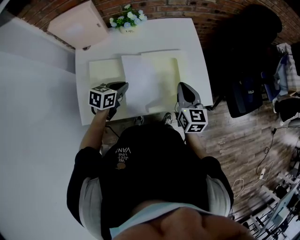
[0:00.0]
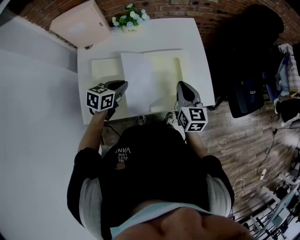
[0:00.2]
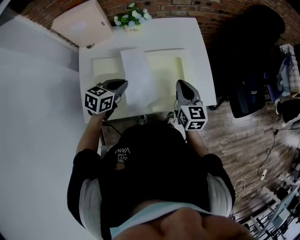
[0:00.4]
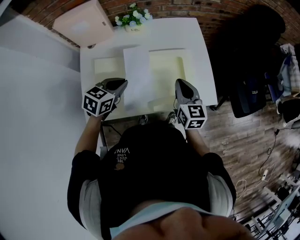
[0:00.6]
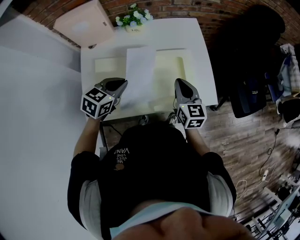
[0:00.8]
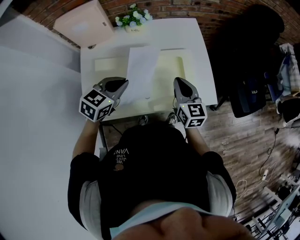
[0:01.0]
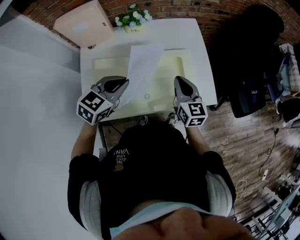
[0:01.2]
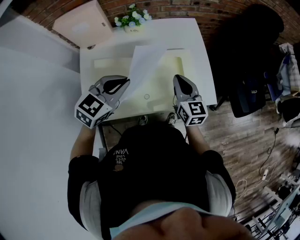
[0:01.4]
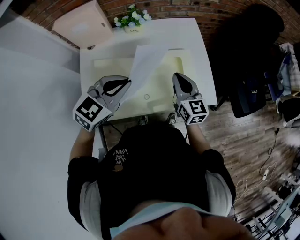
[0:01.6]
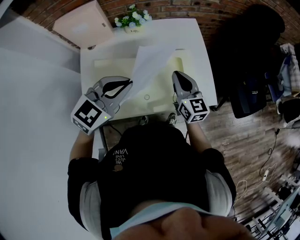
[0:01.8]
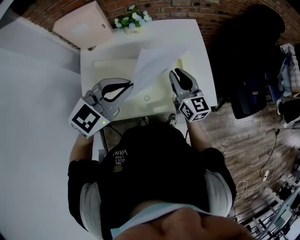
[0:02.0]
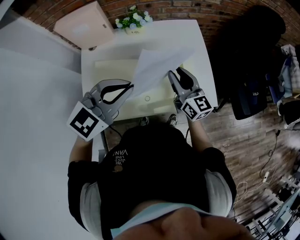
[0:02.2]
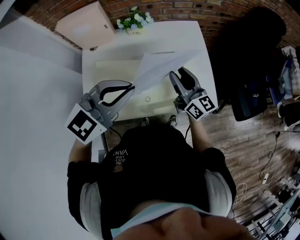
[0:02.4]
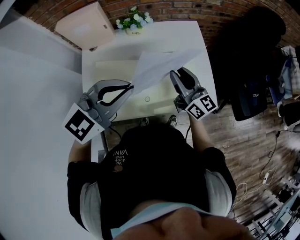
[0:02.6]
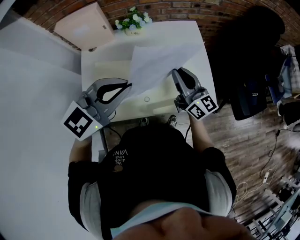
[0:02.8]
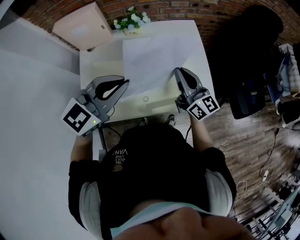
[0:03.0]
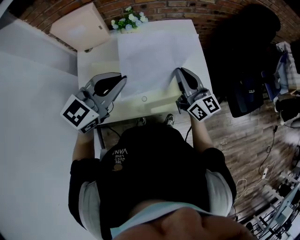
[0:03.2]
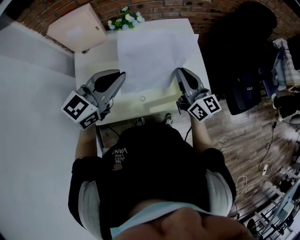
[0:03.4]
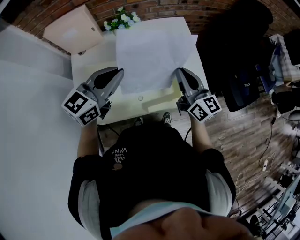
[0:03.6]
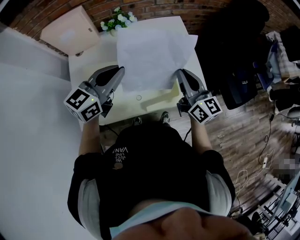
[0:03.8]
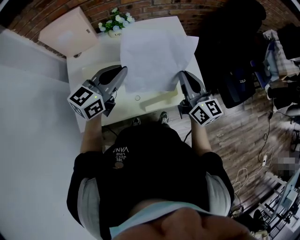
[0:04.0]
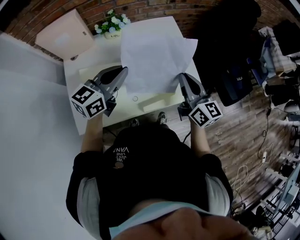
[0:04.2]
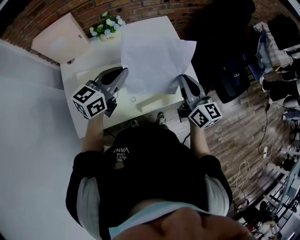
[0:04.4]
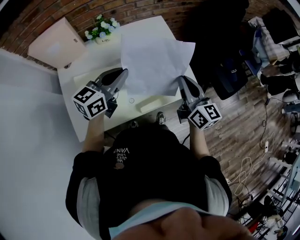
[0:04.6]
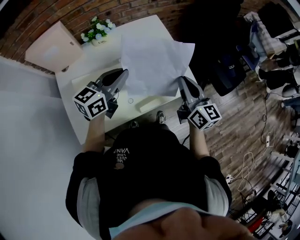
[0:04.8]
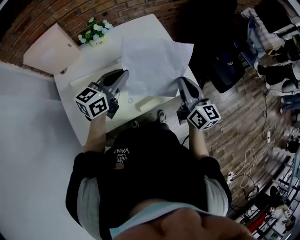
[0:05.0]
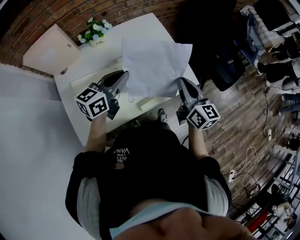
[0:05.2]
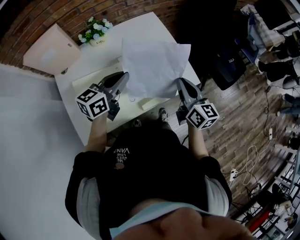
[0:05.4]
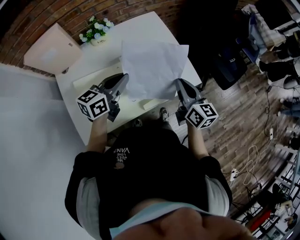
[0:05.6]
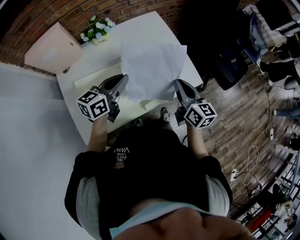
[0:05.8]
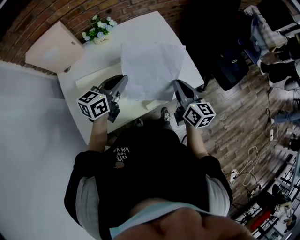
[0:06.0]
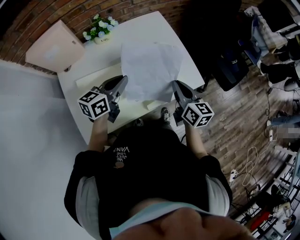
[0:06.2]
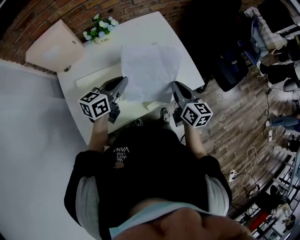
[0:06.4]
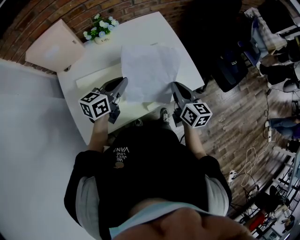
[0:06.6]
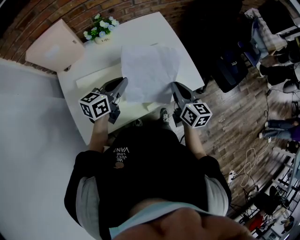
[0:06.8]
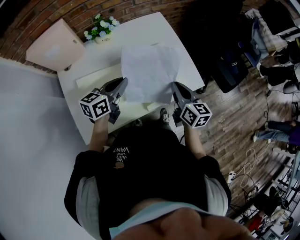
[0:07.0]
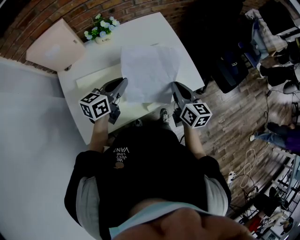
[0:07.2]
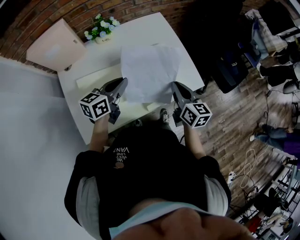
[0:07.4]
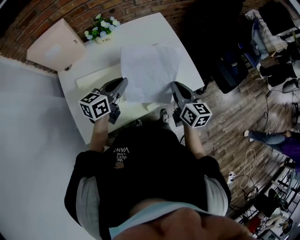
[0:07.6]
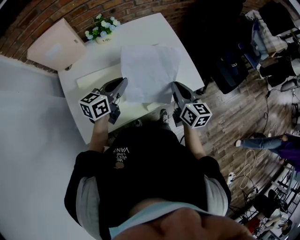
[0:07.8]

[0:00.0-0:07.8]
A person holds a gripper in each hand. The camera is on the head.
0:00.0 to 0:01.6: The left gripper heads upward, covering about 20 cm, and swivels about 40 degrees. Meanwhile the right gripper moves about 5 cm.
0:01.6 to 0:03.2: Both grippers move upward, about 5 cm. The right gripper turns by about 20 degrees, and opens and closes again.
0:03.2 to 0:04.6: The left gripper shifts some 10 cm downward and forward, and turns by roughly 20 degrees. Meanwhile the right gripper is displaced to the right by roughly 10 cm, and rotates approximately 20 degrees.
0:04.6 to 0:06.2: Both grippers travel together downward, roughly 5 cm.
0:06.2 to 0:07.8: The grippers move only a little.

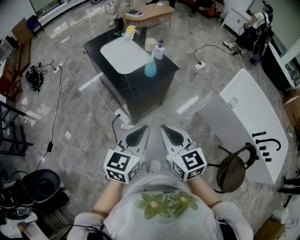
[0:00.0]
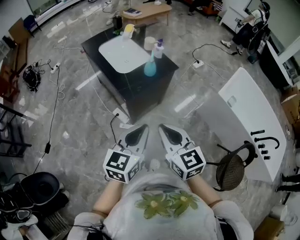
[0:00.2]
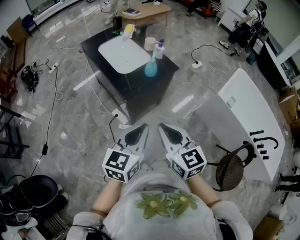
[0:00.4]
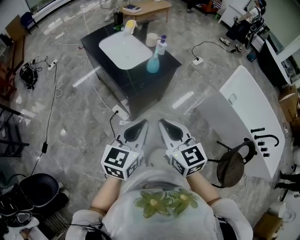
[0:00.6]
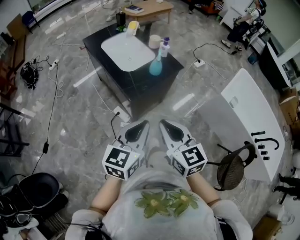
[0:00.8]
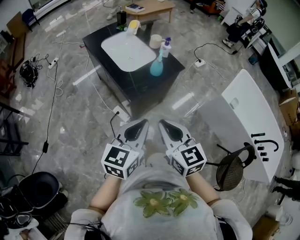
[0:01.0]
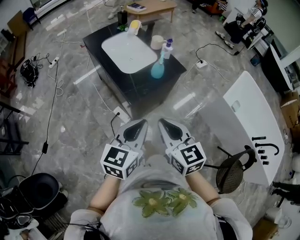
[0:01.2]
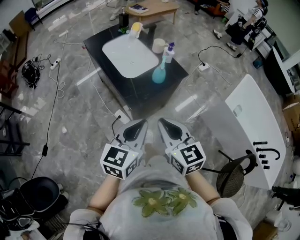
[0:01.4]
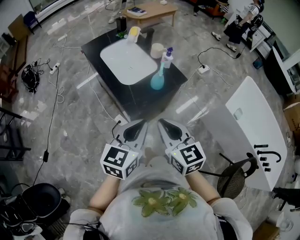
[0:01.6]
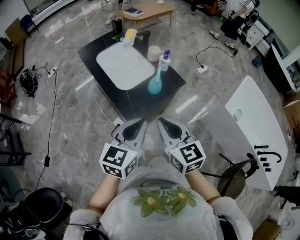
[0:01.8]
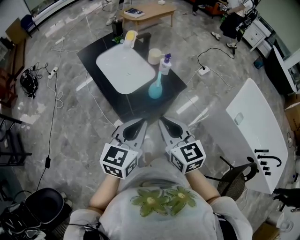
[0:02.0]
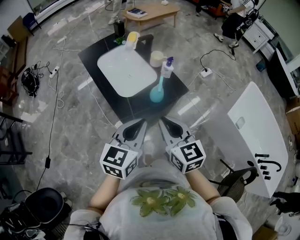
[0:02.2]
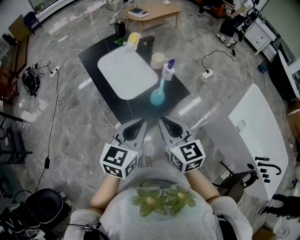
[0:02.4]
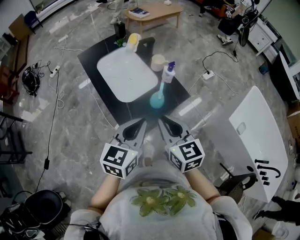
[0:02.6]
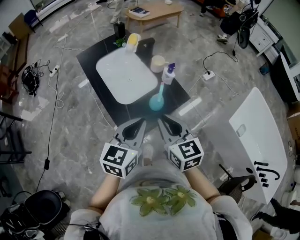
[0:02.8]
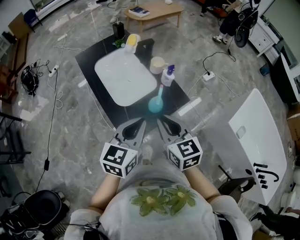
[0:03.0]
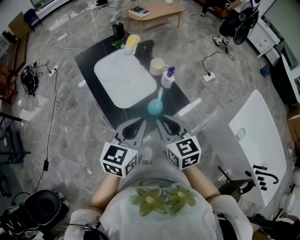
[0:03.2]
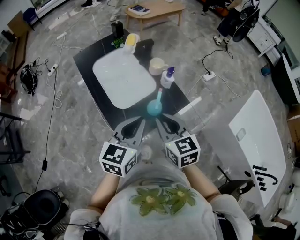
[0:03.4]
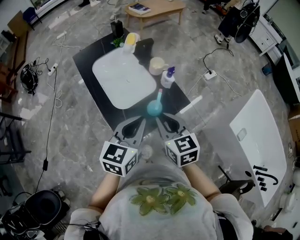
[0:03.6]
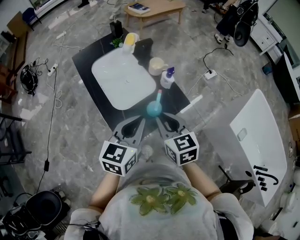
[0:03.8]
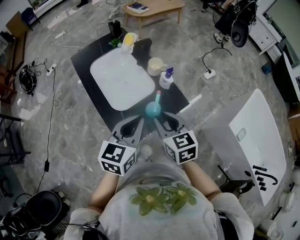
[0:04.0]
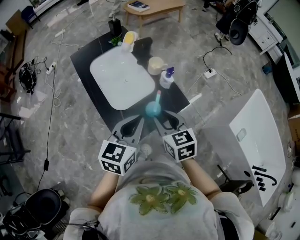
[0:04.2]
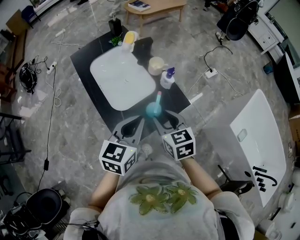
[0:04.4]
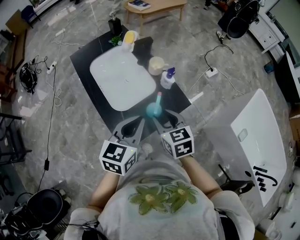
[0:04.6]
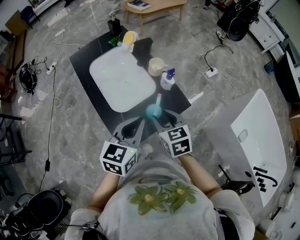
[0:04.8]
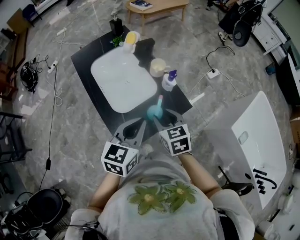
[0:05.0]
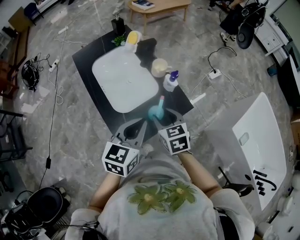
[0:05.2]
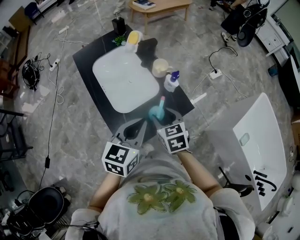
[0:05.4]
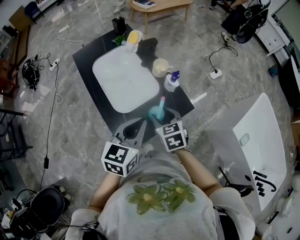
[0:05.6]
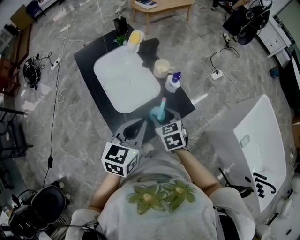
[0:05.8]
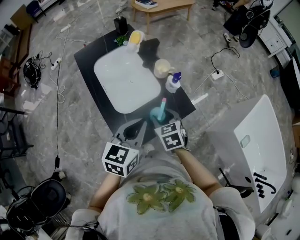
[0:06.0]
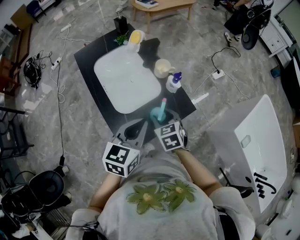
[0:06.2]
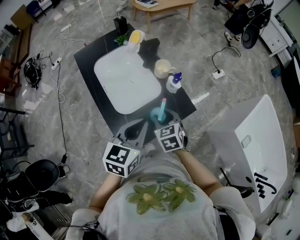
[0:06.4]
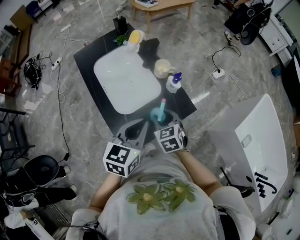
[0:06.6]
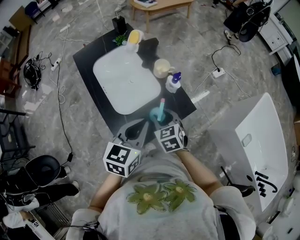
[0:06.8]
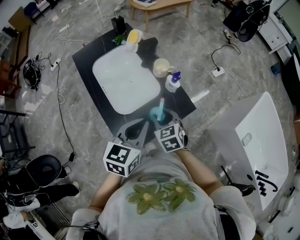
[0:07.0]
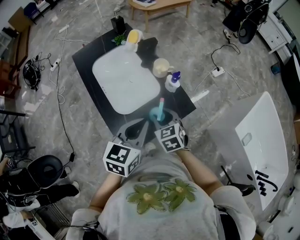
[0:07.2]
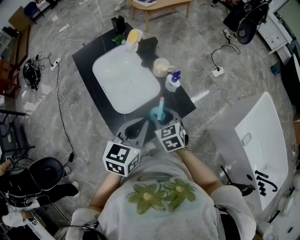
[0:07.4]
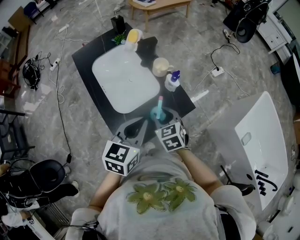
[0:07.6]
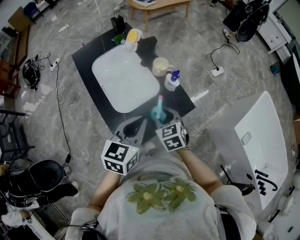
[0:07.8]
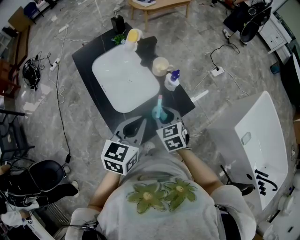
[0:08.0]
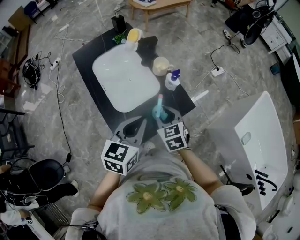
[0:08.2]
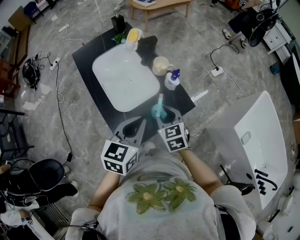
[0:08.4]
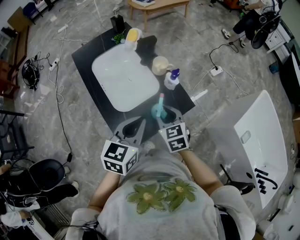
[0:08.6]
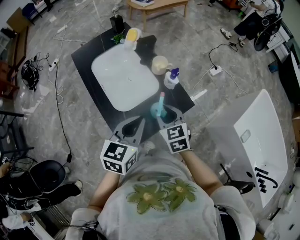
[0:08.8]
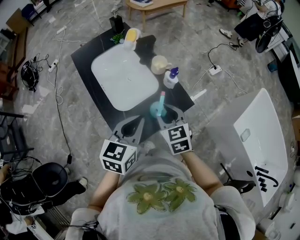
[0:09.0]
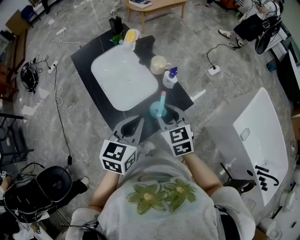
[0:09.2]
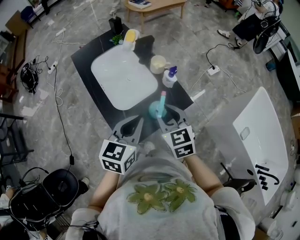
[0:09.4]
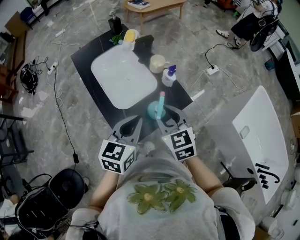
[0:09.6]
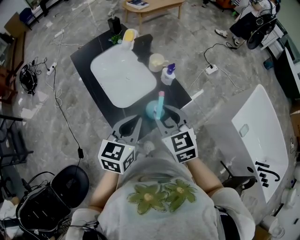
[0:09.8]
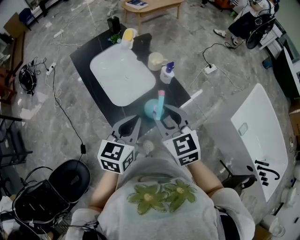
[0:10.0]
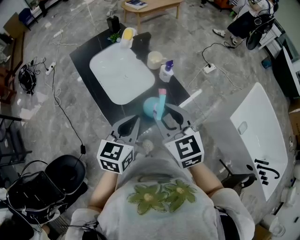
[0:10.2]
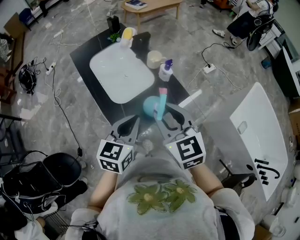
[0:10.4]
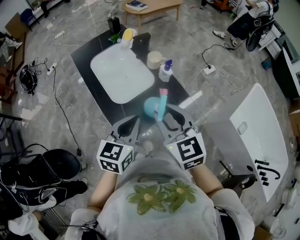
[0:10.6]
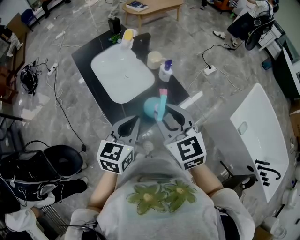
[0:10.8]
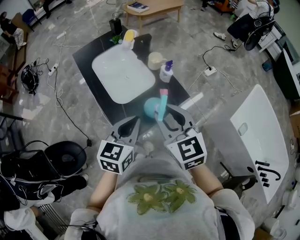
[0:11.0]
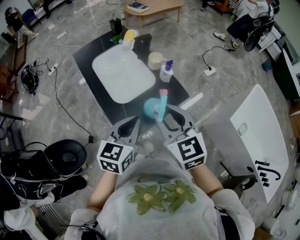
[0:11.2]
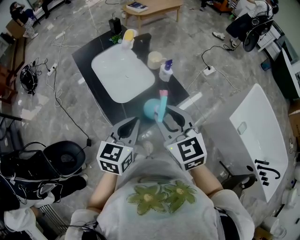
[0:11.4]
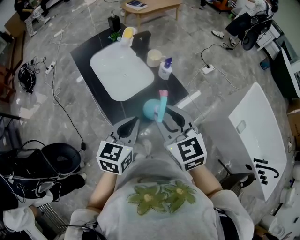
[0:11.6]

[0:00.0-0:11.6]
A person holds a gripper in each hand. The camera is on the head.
0:00.0 to 0:01.4: The grippers both shift forward and to the left by approximately 10 cm.
0:01.4 to 0:02.8: Both grippers travel together forward, some 20 cm.
0:02.8 to 0:04.4: The right gripper goes about 10 cm forward and downward, and opens. Meanwhile the left gripper moves forward, about 5 cm.
0:04.4 to 0:05.8: The right gripper moves downward, approximately 5 cm.
0:05.8 to 0:08.8: The grippers make only small movements.
0:08.8 to 0:10.2: The right gripper is displaced upward and backward by roughly 15 cm. Meanwhile the left gripper shifts about 5 cm backward.
0:10.2 to 0:11.6: There are only small adjustments of the grippers.

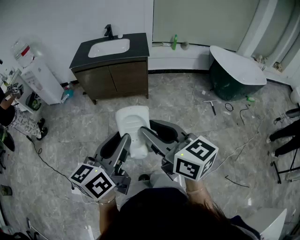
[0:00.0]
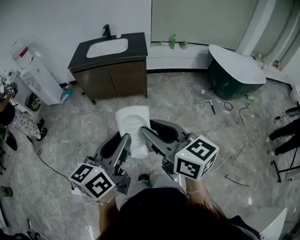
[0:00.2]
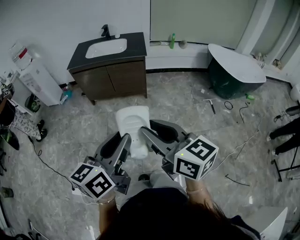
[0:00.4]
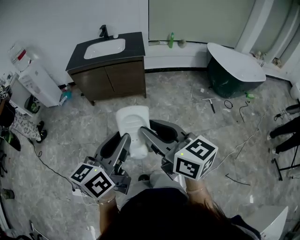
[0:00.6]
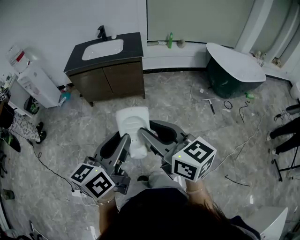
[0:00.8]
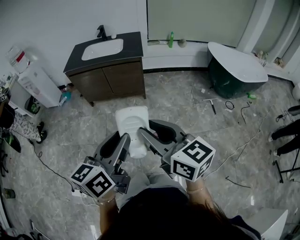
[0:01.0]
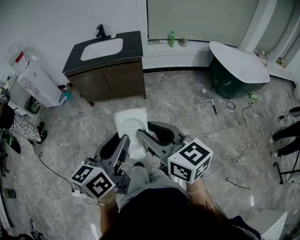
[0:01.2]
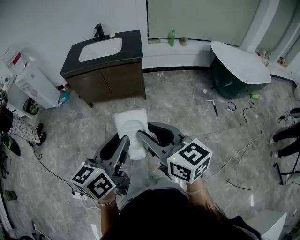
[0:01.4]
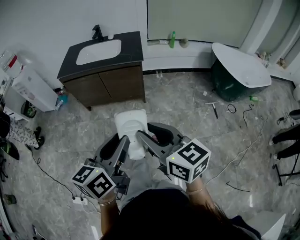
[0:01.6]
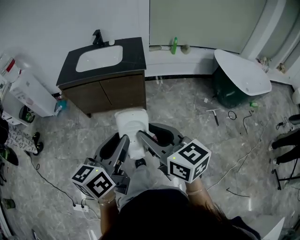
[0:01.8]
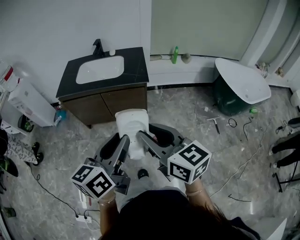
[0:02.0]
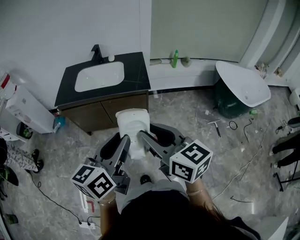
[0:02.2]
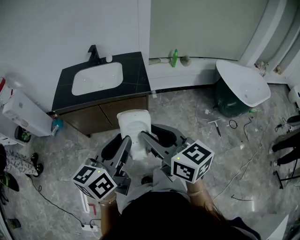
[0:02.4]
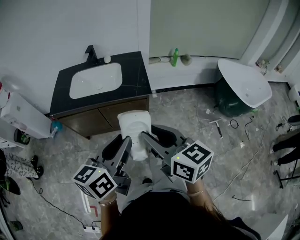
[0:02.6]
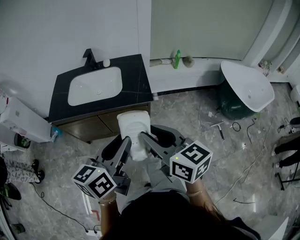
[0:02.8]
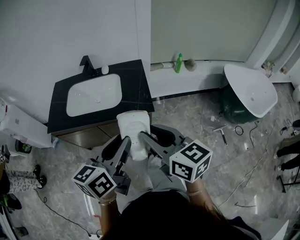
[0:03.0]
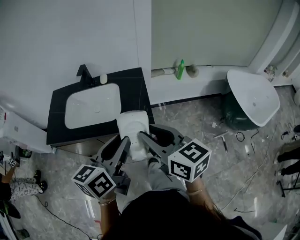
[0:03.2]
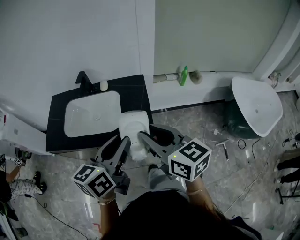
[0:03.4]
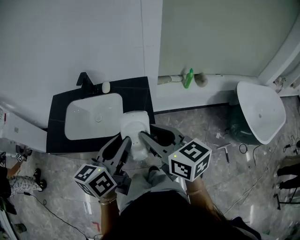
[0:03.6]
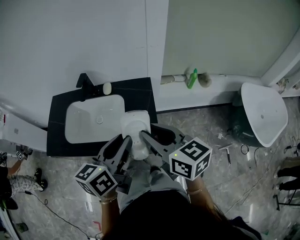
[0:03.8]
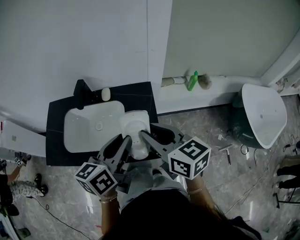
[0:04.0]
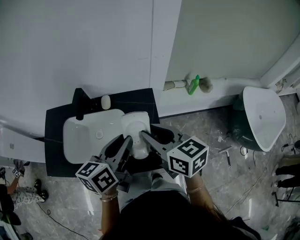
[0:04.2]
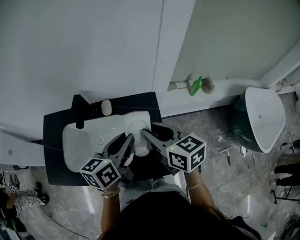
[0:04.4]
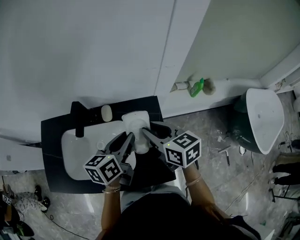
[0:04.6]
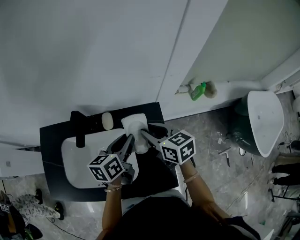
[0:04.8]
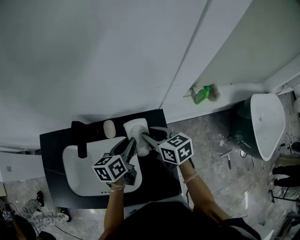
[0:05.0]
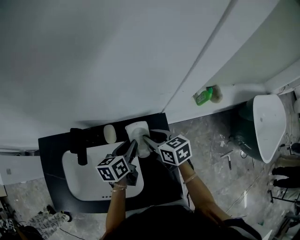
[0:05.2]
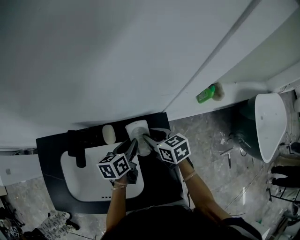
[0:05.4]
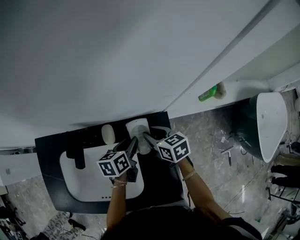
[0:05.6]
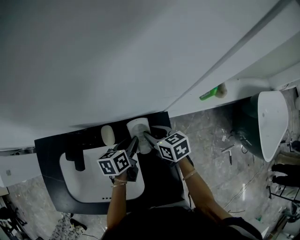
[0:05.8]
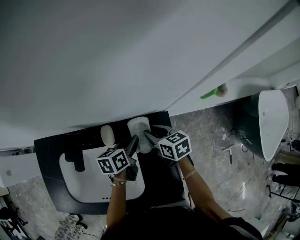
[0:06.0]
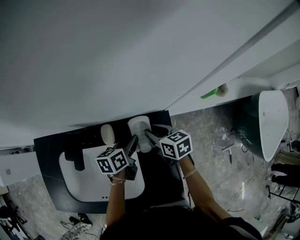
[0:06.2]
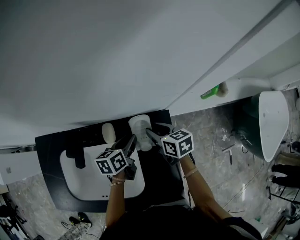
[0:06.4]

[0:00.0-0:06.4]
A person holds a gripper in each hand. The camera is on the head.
0:00.0 to 0:01.6: The two grippers go about 15 cm forward.
0:01.6 to 0:03.2: The pair of grippers is taken forward, approximately 50 cm.
0:03.2 to 0:04.8: The two grippers travel together, forward, roughly 40 cm.
0:04.8 to 0:06.4: The two grippers go approximately 15 cm downward and forward.
